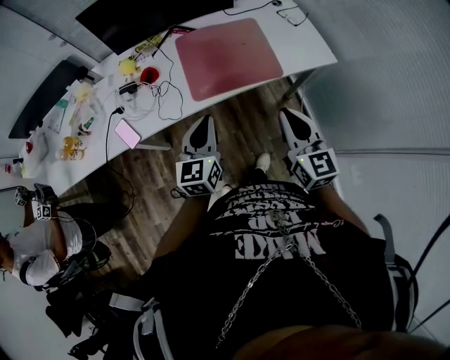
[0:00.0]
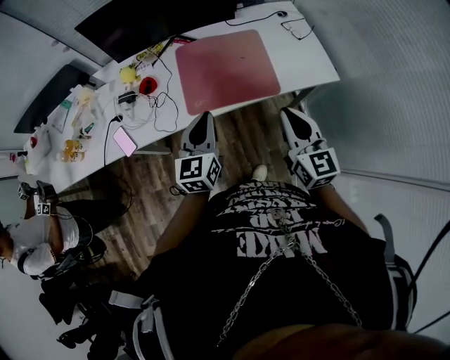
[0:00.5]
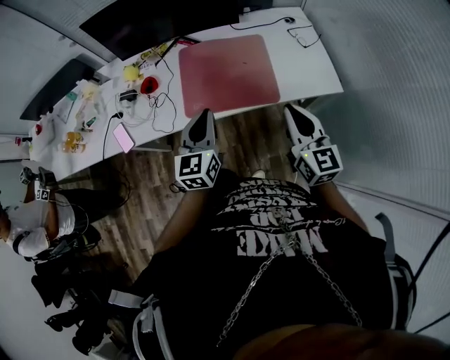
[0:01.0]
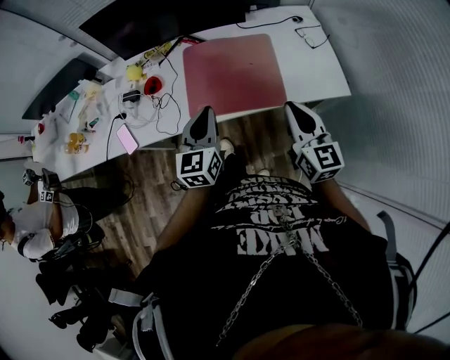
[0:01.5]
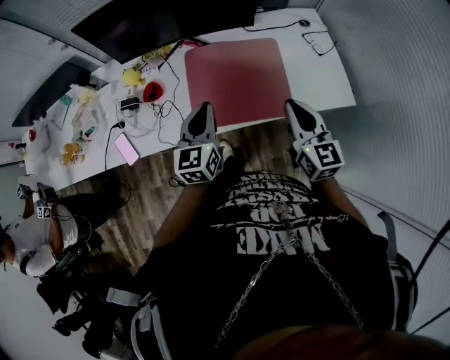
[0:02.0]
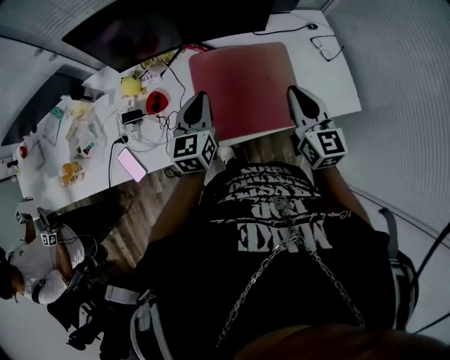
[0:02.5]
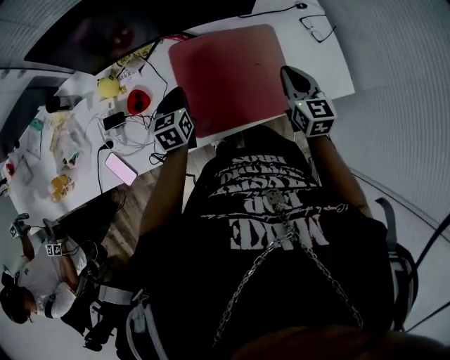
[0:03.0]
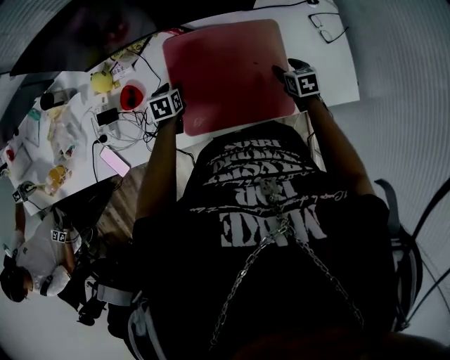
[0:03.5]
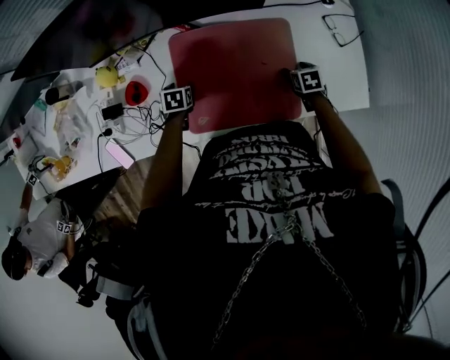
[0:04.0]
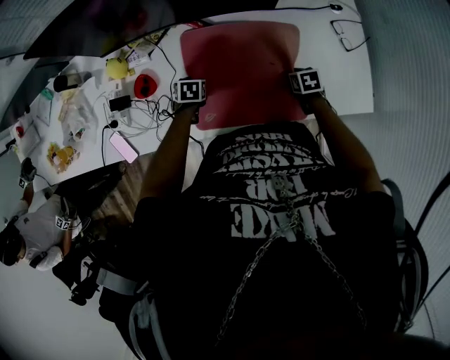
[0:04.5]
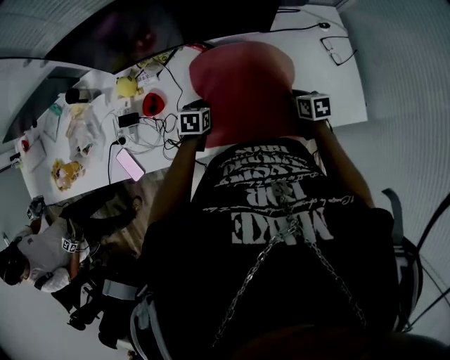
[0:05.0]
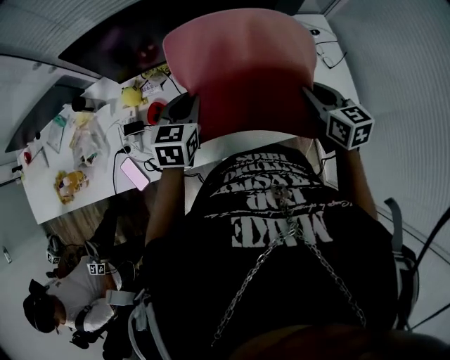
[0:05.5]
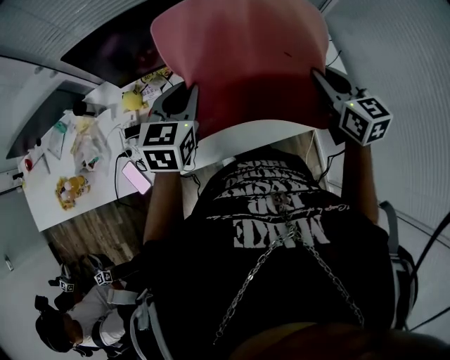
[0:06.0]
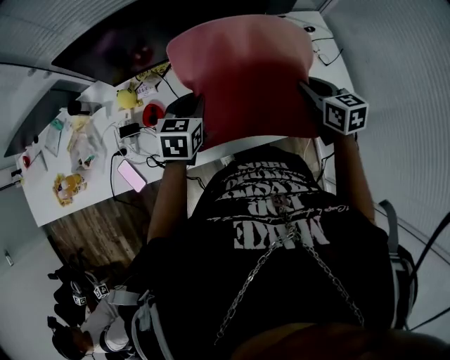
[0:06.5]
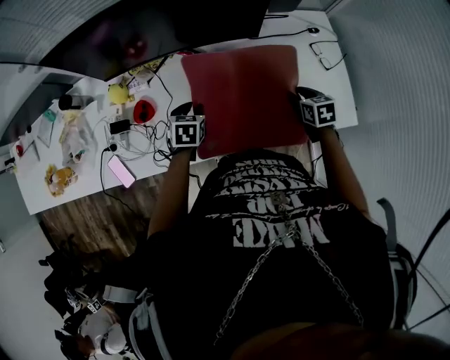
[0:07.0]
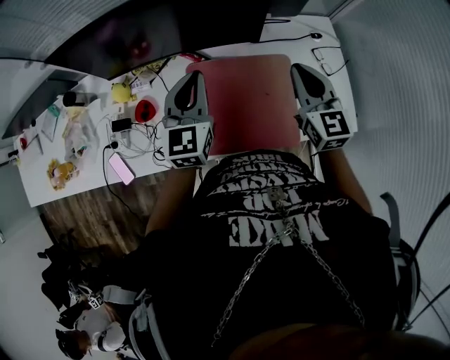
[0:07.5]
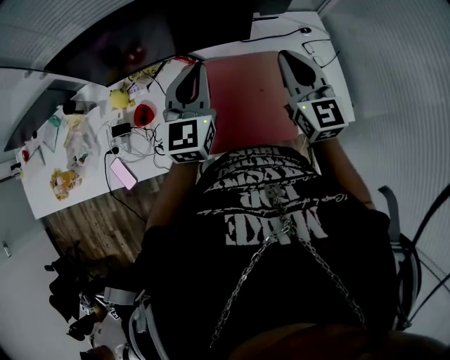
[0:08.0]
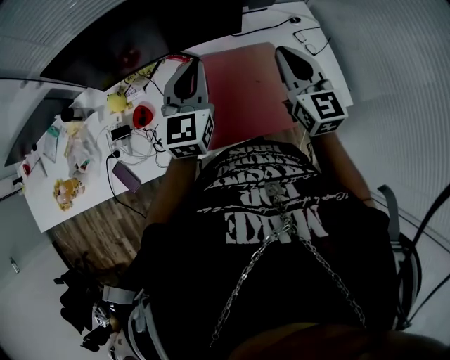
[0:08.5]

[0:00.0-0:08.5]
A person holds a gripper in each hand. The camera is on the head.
0:00.0 to 0:02.0: The grippers both shift forward by approximately 20 cm.
0:02.0 to 0:04.0: Both grippers move downward and forward, roughly 40 cm. The left gripper angles its fingers downward, by approximately 60 degrees, and opens up. Meanwhile the right gripper tips its fingers downward by approximately 60 degrees, and opens its fingers.
0:04.0 to 0:06.5: Both grippers move upward, roughly 30 cm. The right gripper angles its fingers upward, by roughly 30 degrees, and closes; the left gripper tips its fingers upward by roughly 30 degrees, and closes up.
0:06.5 to 0:08.5: The right gripper shifts about 10 cm upward, swivels some 30 degrees, and opens, then closes again. The left gripper moves upward and to the right, about 15 cm, and tips its fingers upward by about 30 degrees.

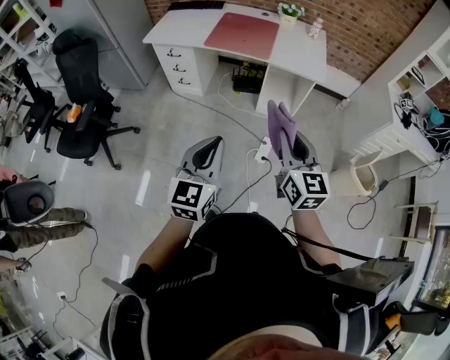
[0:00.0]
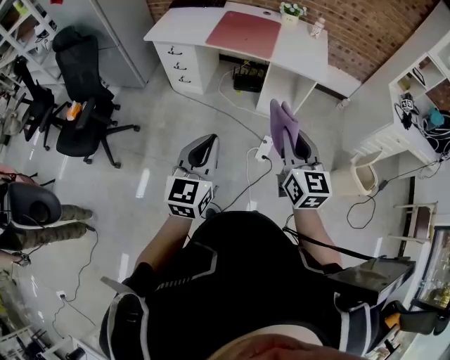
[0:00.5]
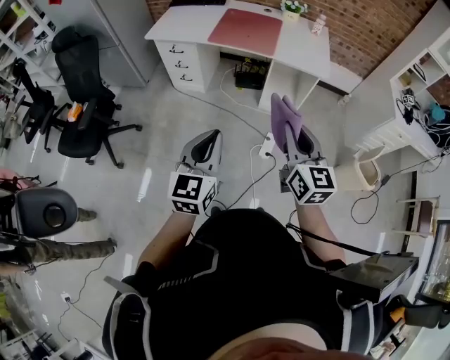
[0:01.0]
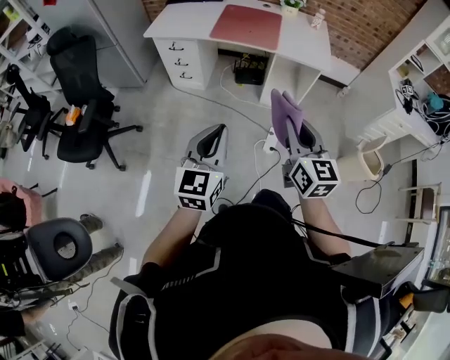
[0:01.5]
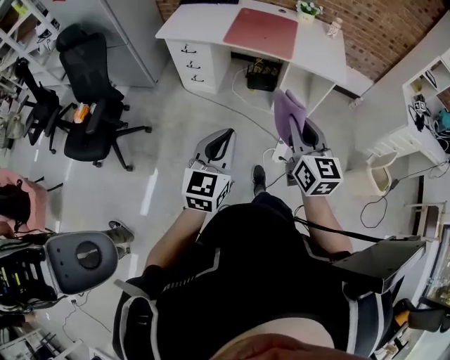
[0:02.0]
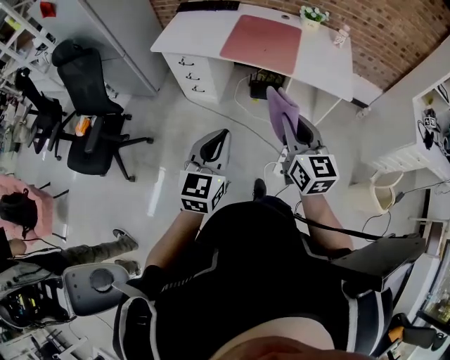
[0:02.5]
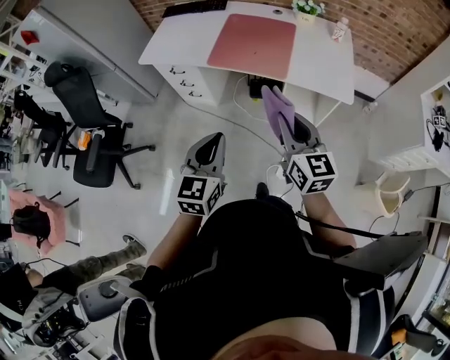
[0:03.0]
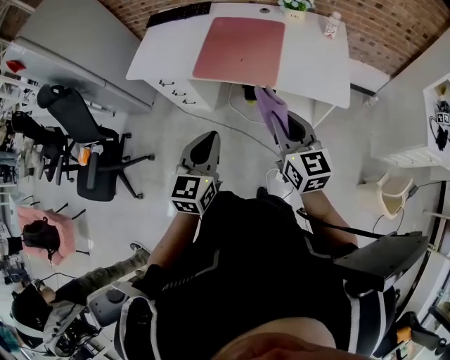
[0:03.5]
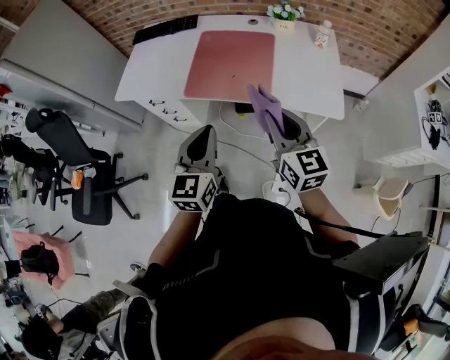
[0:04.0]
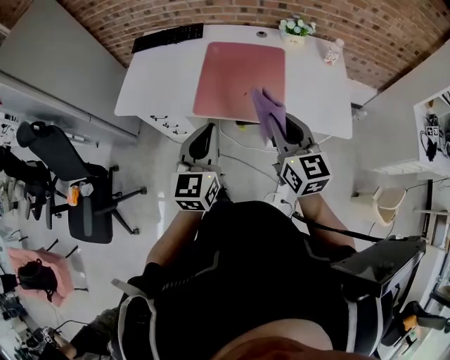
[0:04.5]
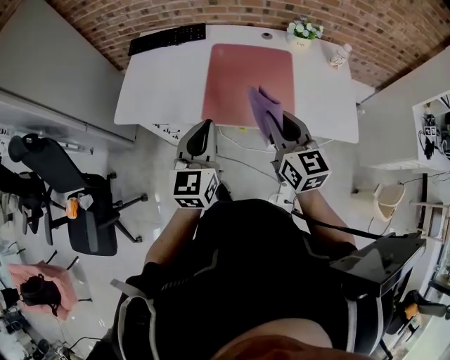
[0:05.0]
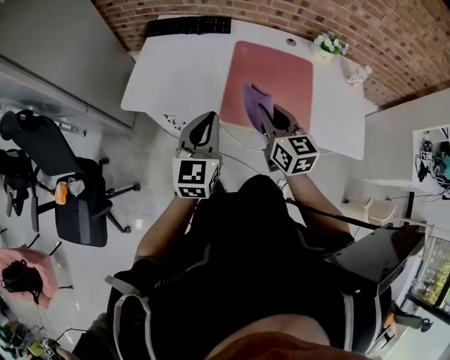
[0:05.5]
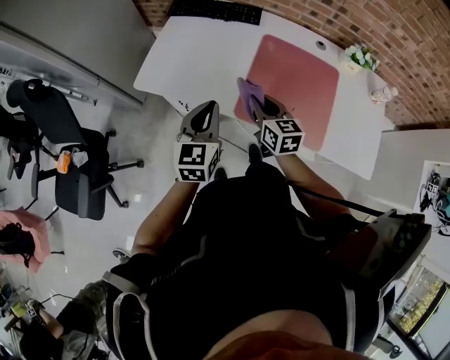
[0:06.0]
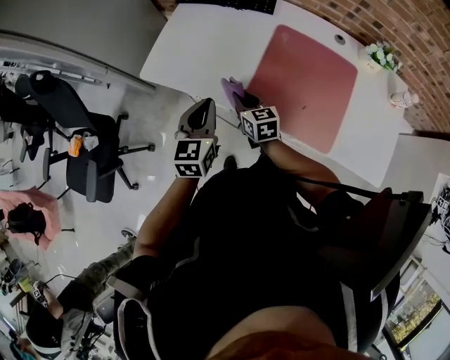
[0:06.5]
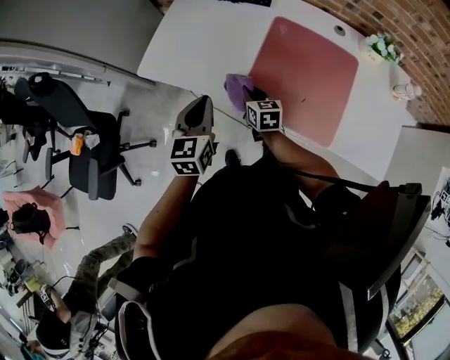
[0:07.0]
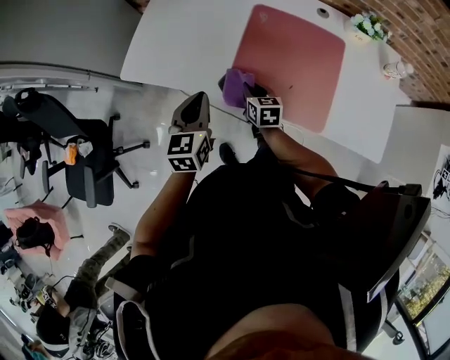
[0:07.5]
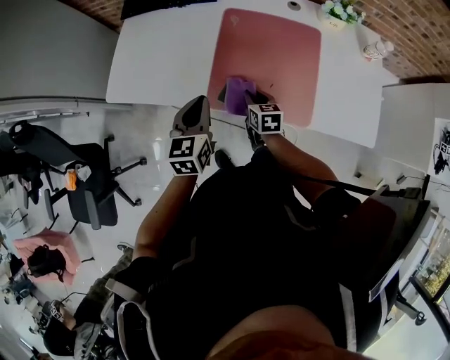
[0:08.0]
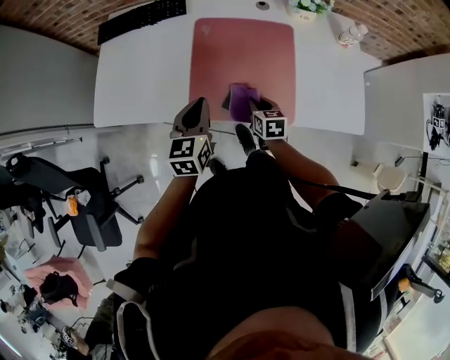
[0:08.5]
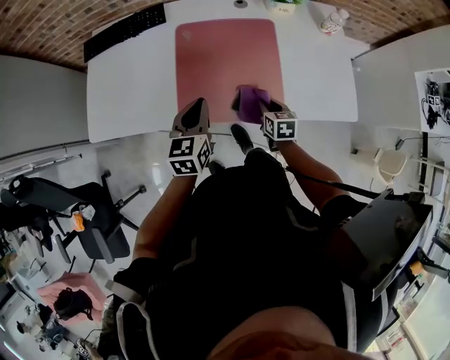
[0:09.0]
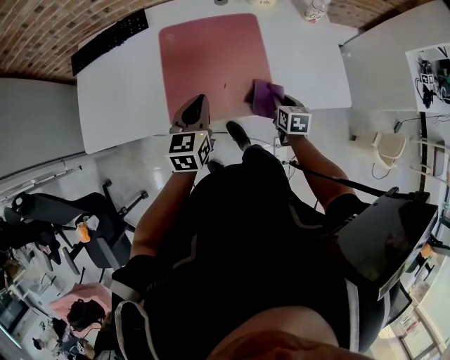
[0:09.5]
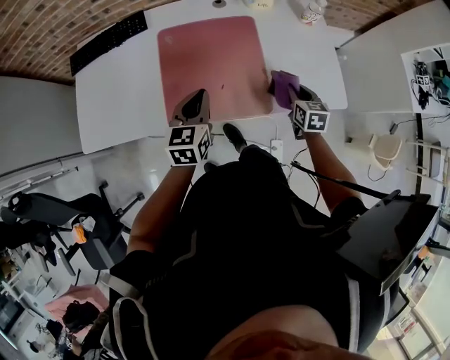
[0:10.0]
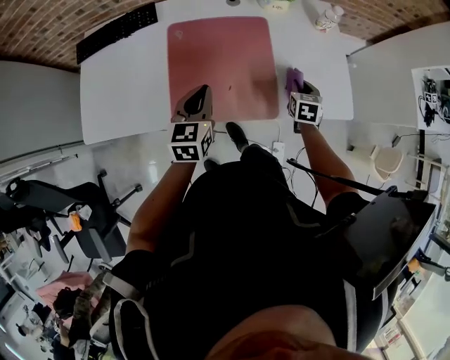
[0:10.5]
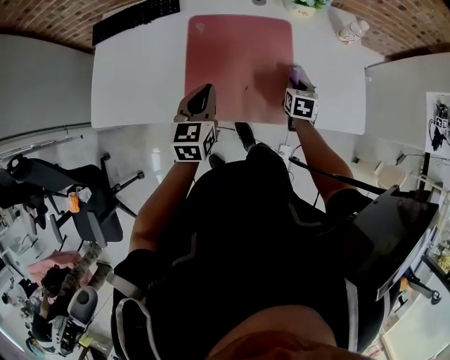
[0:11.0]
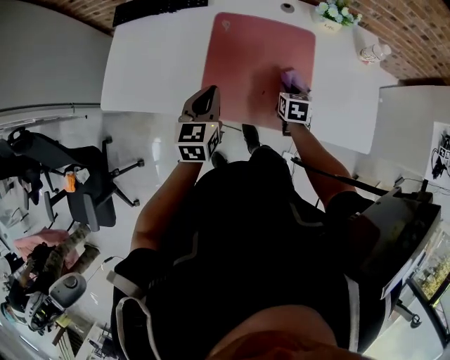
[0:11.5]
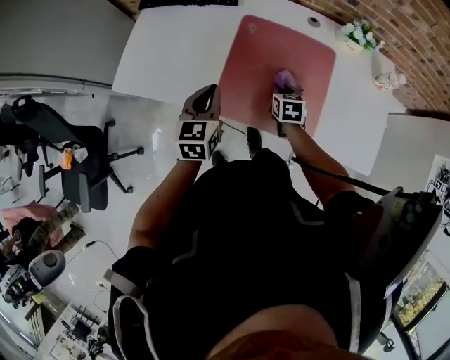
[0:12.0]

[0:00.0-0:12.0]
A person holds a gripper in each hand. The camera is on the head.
0:00.0 to 0:02.0: The left gripper goes some 10 cm to the left. Meanwhile the right gripper shifts approximately 10 cm to the left and forward.
0:02.0 to 0:04.0: Both grippers move forward, about 35 cm.
0:04.0 to 0:06.0: The right gripper is displaced forward, to the left and downward by about 40 cm, and rotates some 20 degrees; the left gripper shifts some 35 cm forward and to the left.
0:06.0 to 0:08.0: The left gripper travels to the right and downward by approximately 10 cm, while the right gripper heads downward and to the right, covering some 20 cm, and swivels about 20 degrees.
0:08.0 to 0:10.0: The left gripper changes place by roughly 15 cm, and turns by some 20 degrees. The right gripper shifts by about 30 cm, and rotates about 20 degrees.
0:10.0 to 0:12.0: The left gripper moves roughly 15 cm, and rotates roughly 20 degrees. The right gripper moves roughly 25 cm, and changes its angle by approximately 30 degrees.

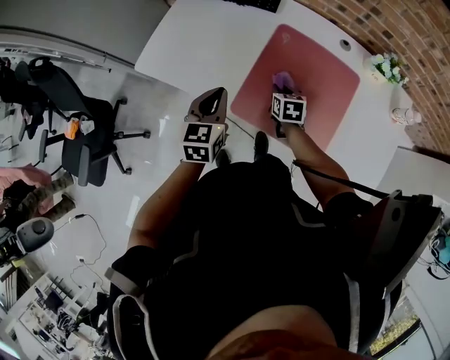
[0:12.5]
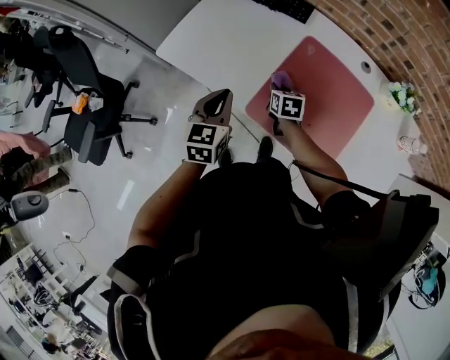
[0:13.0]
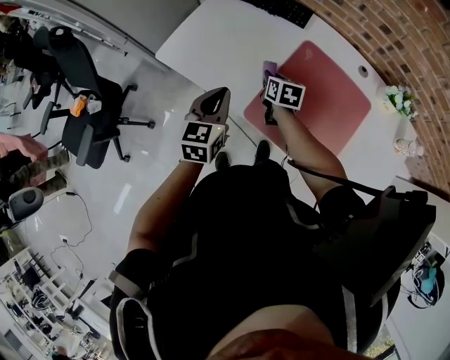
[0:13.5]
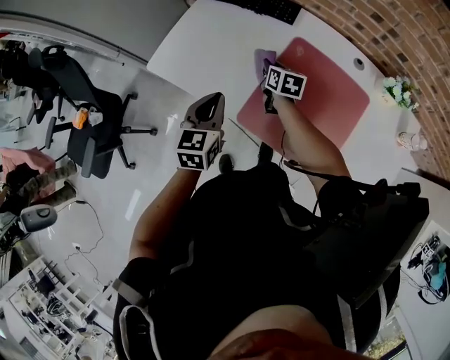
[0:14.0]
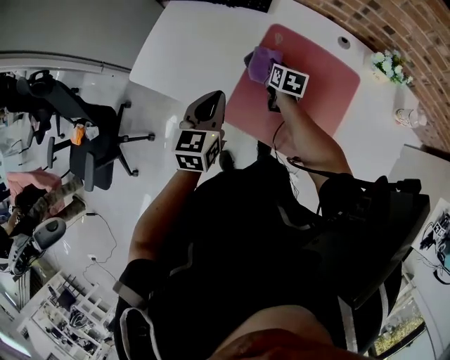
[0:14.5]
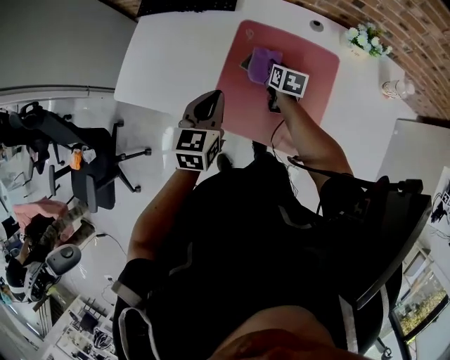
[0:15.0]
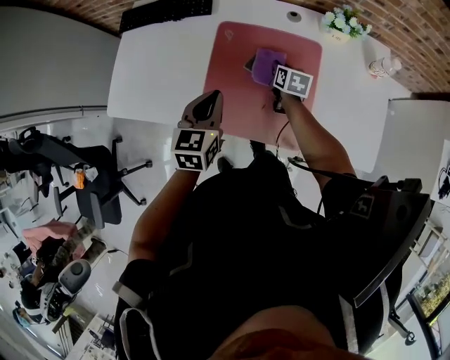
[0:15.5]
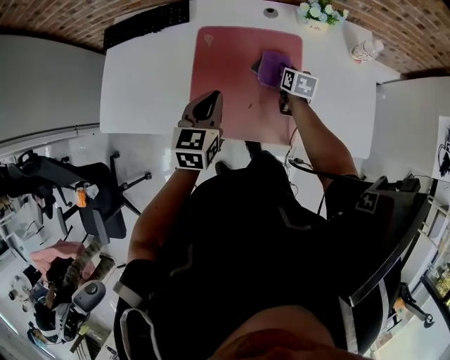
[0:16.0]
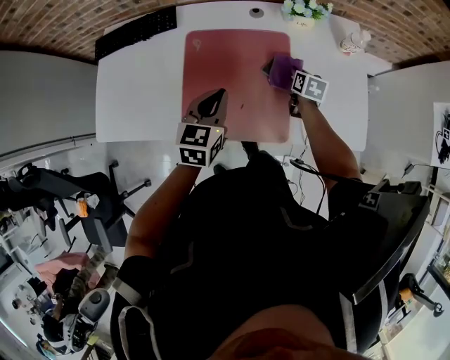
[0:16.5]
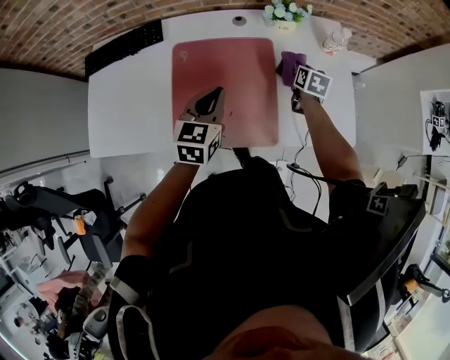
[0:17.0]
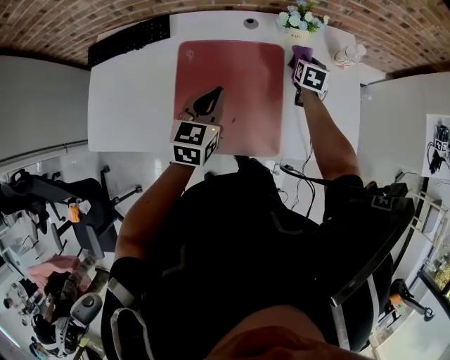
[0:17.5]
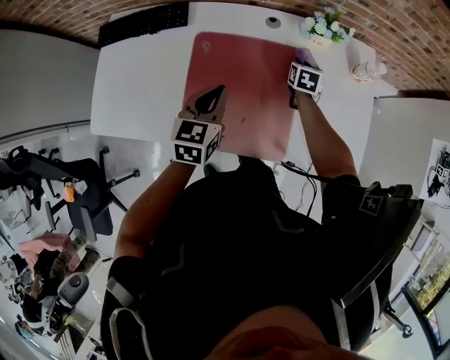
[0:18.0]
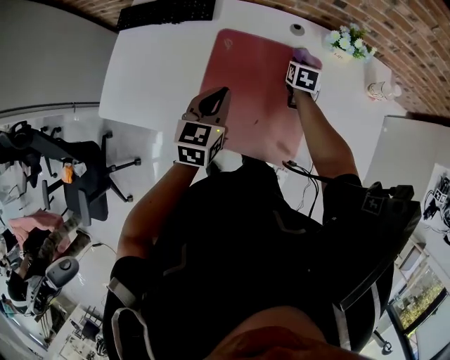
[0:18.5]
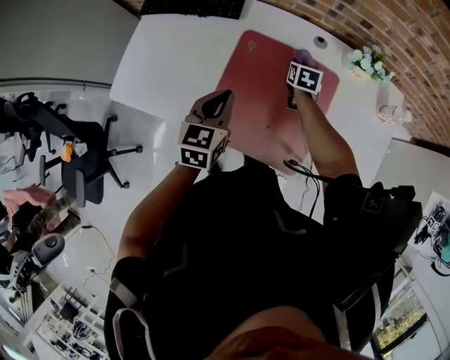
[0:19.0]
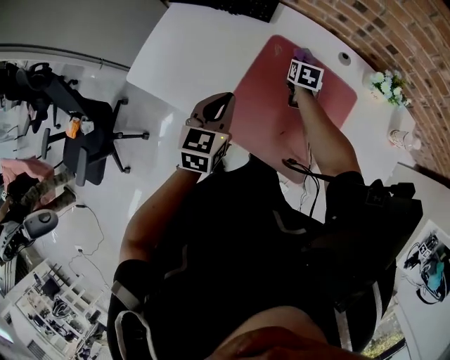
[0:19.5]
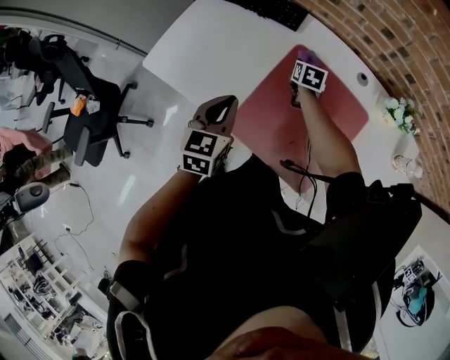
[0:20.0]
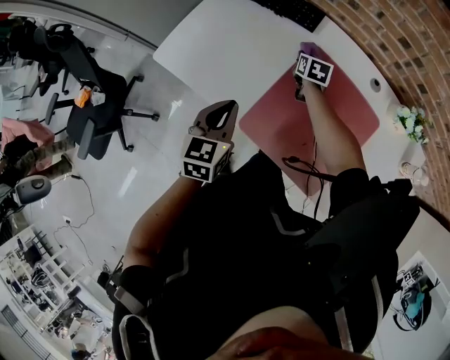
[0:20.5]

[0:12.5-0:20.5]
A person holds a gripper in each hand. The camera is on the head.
0:12.5 to 0:14.5: The right gripper goes roughly 10 cm forward, and moves approximately 10 cm to the left and comes back.
0:14.5 to 0:16.5: The left gripper changes place by approximately 20 cm, and changes its angle by some 30 degrees. The right gripper shifts by approximately 30 cm, and changes its angle by about 30 degrees.
0:16.5 to 0:18.5: The right gripper shifts about 15 cm to the left and forward. The left gripper is displaced to the left by about 5 cm.
0:18.5 to 0:20.5: The left gripper ends up about 20 cm from where it was, and swivels roughly 20 degrees. The right gripper ends up about 30 cm from where it was, and changes its angle by some 20 degrees.
